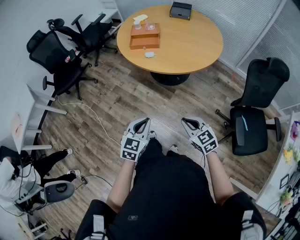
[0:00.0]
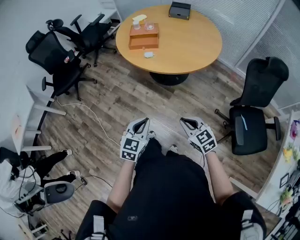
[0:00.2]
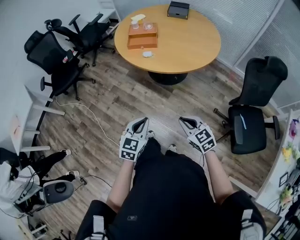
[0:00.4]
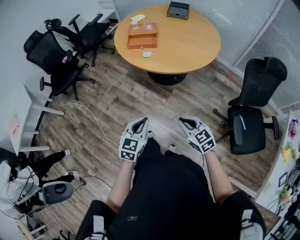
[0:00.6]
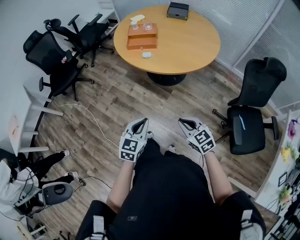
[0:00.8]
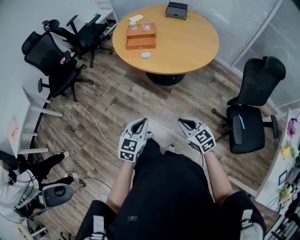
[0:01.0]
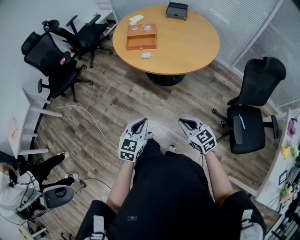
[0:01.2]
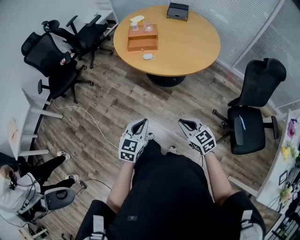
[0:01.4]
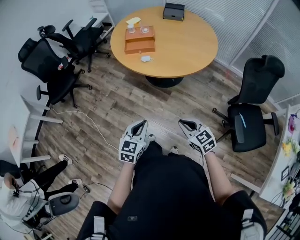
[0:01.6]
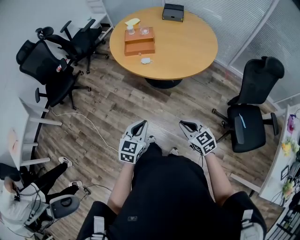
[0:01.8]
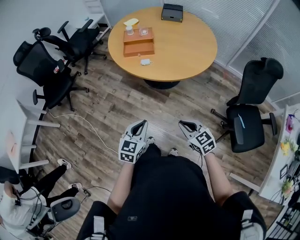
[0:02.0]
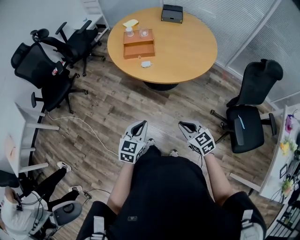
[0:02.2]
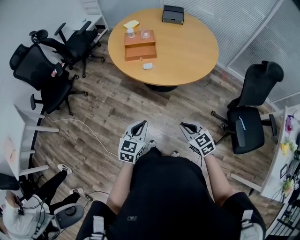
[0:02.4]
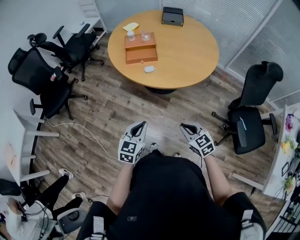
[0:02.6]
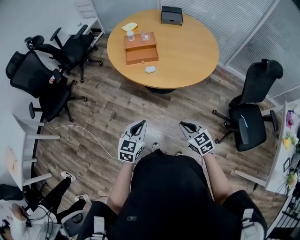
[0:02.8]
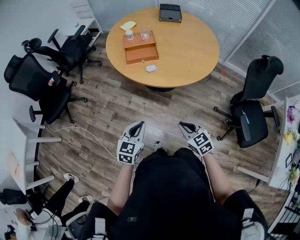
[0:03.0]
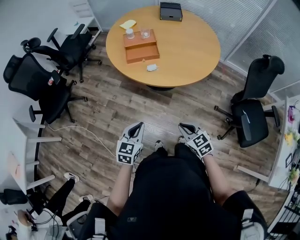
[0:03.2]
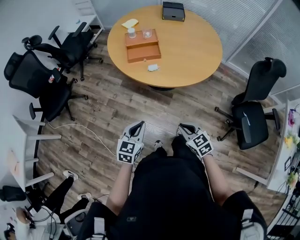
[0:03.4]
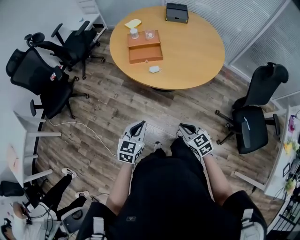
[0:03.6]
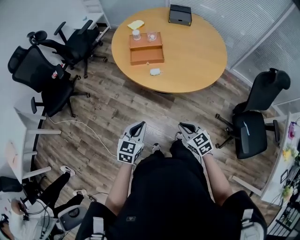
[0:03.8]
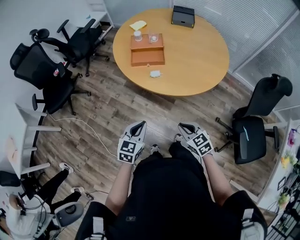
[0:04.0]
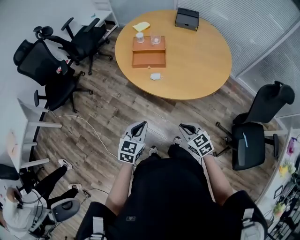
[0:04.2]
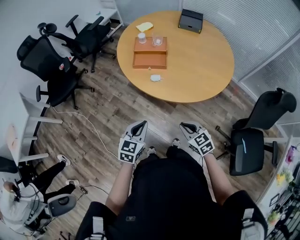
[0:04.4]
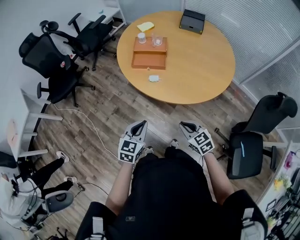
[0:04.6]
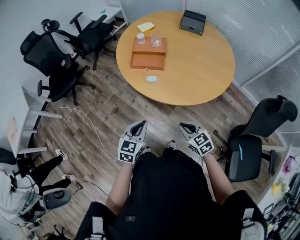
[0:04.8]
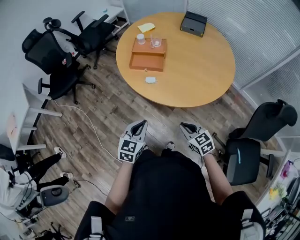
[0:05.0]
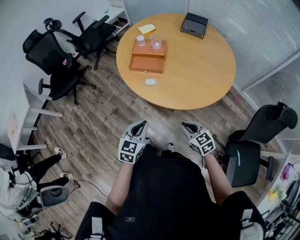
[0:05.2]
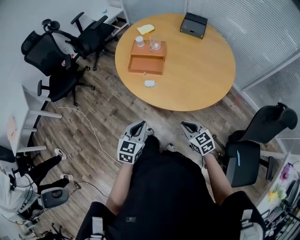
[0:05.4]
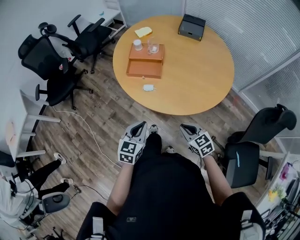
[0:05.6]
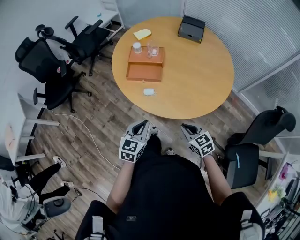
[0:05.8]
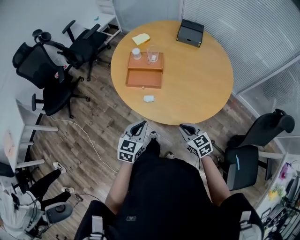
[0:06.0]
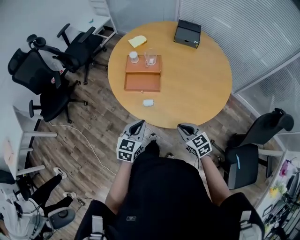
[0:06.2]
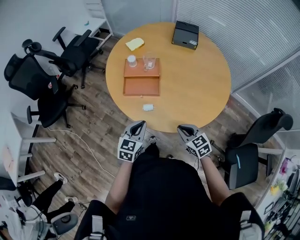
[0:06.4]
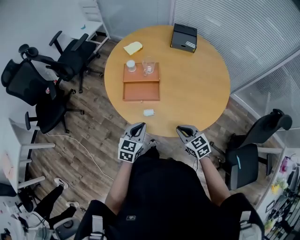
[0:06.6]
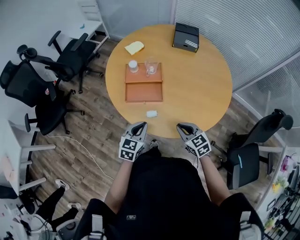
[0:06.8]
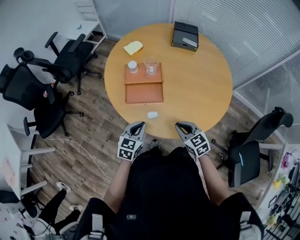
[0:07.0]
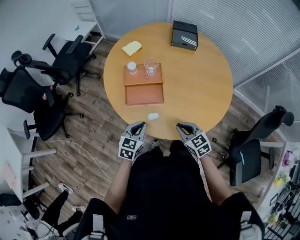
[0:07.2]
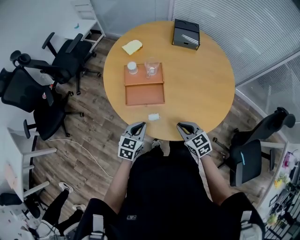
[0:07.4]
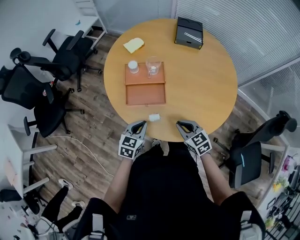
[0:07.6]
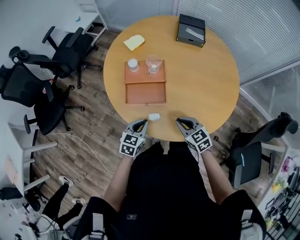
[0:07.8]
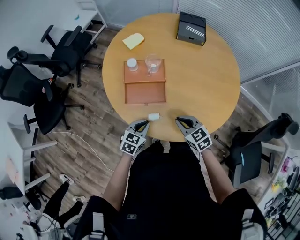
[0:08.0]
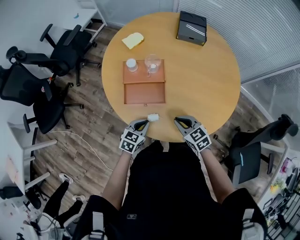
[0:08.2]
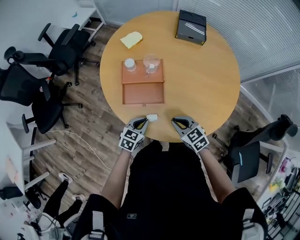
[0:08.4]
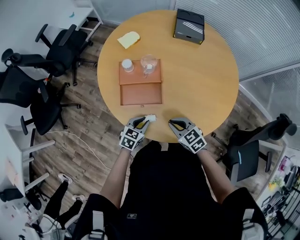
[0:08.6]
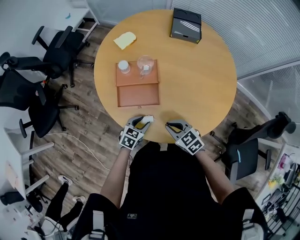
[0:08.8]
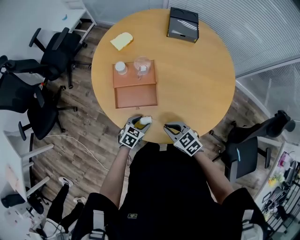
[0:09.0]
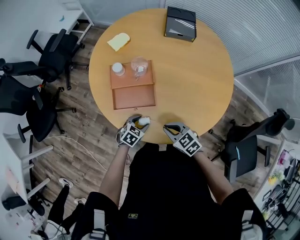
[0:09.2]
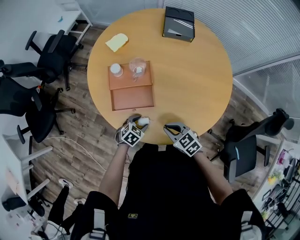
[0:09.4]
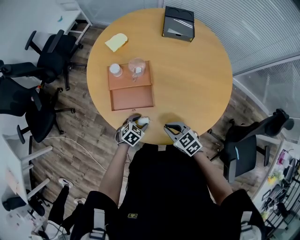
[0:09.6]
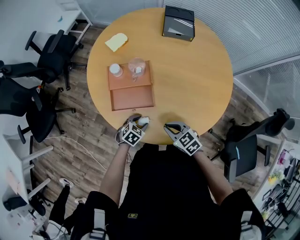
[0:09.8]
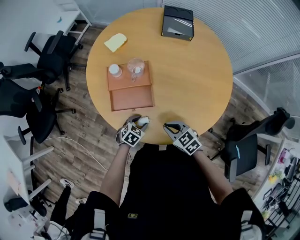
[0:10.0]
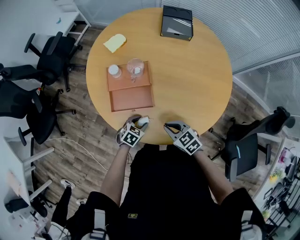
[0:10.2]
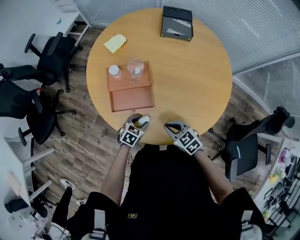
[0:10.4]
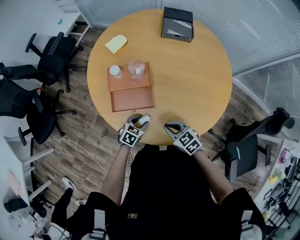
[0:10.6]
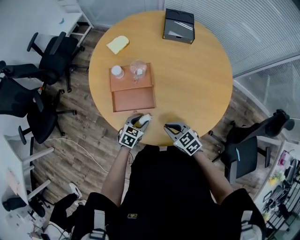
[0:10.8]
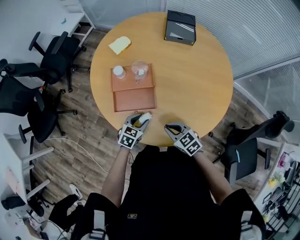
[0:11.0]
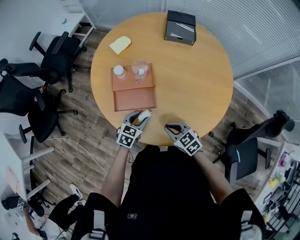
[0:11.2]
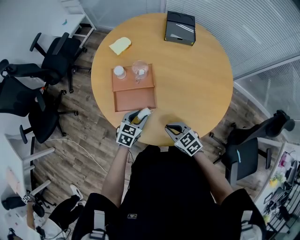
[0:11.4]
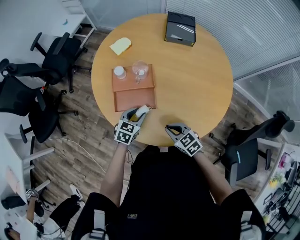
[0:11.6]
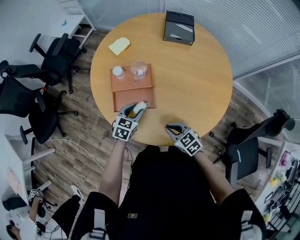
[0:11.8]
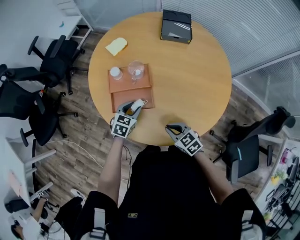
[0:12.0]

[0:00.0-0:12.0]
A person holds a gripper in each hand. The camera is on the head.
0:00.0 to 0:01.6: The left gripper moves about 5 cm.
0:01.6 to 0:03.0: Both grippers travel together forward and to the left, about 15 cm.
0:03.0 to 0:04.4: The left gripper shifts about 10 cm to the right and forward; the right gripper is displaced forward and to the right by approximately 10 cm.
0:04.4 to 0:06.0: Both grippers move forward and to the right, approximately 15 cm.
0:06.0 to 0:07.6: The right gripper heads forward, covering some 15 cm, while the left gripper shifts approximately 15 cm forward and downward.
0:07.6 to 0:09.0: The left gripper shifts some 10 cm downward, changes its angle by approximately 20 degrees, and opens up.
0:09.0 to 0:10.4: There are only small adjustments of the grippers.
0:10.4 to 0:12.0: The left gripper is displaced forward and upward by approximately 10 cm.

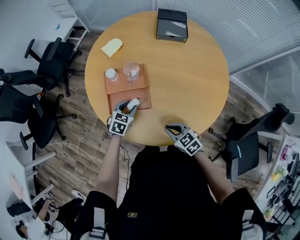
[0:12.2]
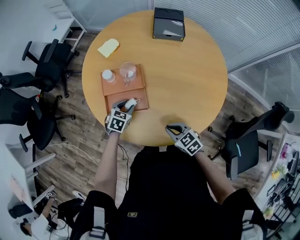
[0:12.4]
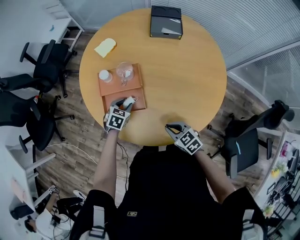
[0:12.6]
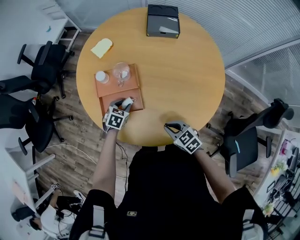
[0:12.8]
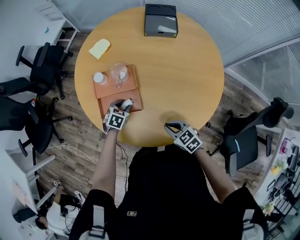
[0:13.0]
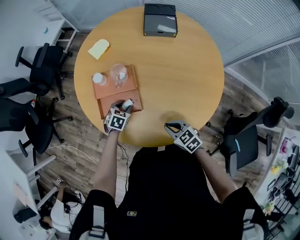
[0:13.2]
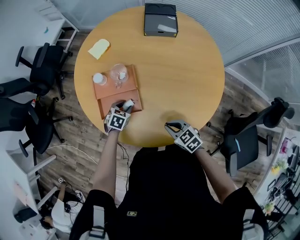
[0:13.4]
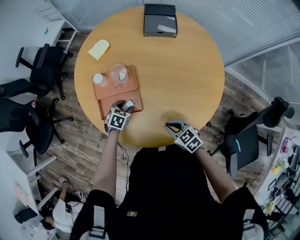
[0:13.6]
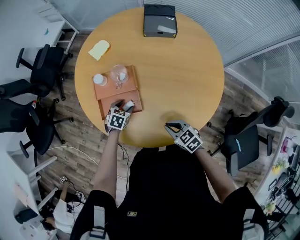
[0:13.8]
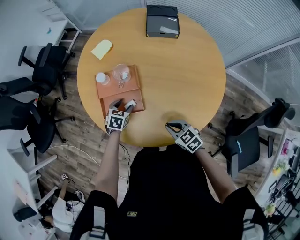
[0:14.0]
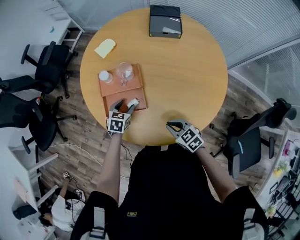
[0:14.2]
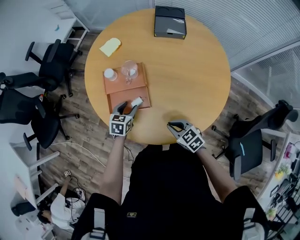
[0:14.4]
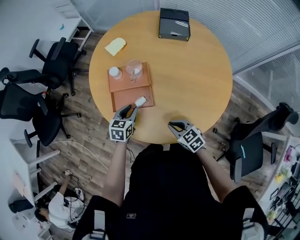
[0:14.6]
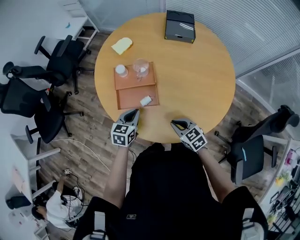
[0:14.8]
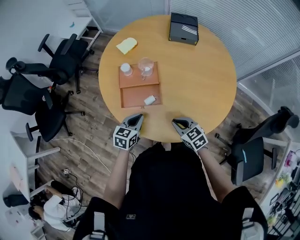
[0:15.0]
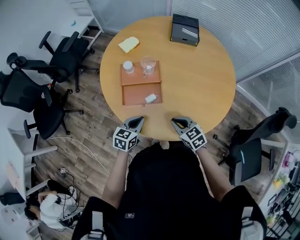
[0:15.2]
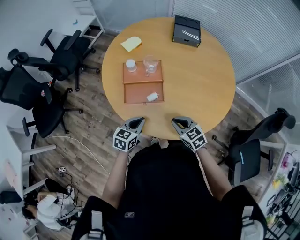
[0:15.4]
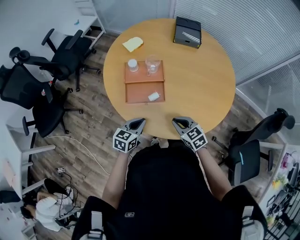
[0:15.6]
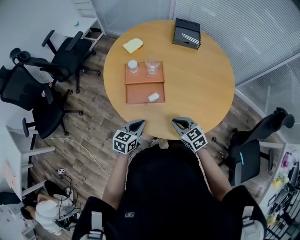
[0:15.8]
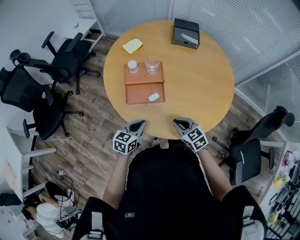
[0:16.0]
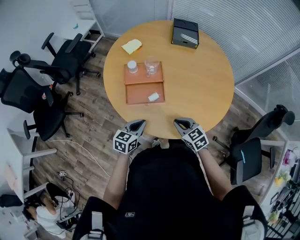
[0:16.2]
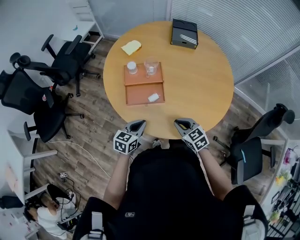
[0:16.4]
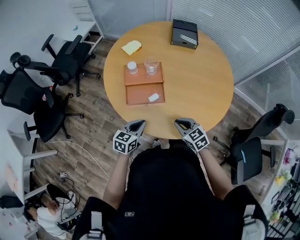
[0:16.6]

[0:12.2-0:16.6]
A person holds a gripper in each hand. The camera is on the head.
0:12.2 to 0:13.6: The left gripper shifts roughly 5 cm downward.
0:13.6 to 0:15.2: The right gripper heads to the left, covering approximately 5 cm. The left gripper moves backward, upward and to the left, some 15 cm, turns by some 30 degrees, and closes.
0:15.2 to 0:16.6: The grippers move only a little.

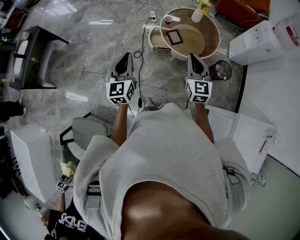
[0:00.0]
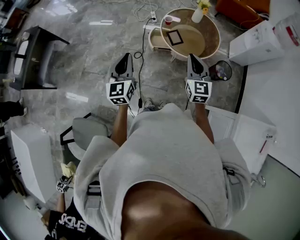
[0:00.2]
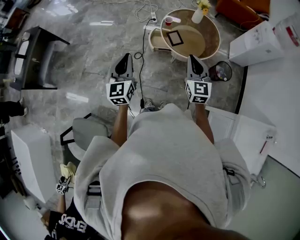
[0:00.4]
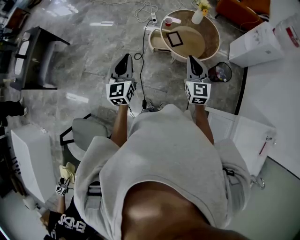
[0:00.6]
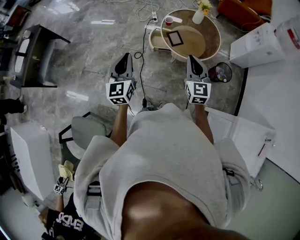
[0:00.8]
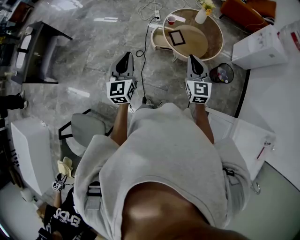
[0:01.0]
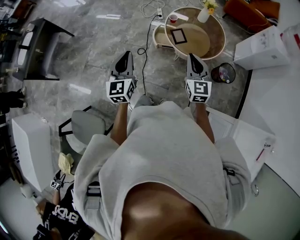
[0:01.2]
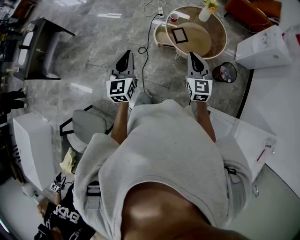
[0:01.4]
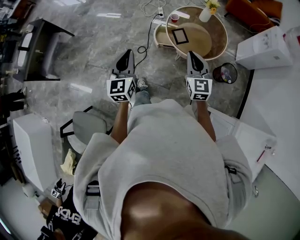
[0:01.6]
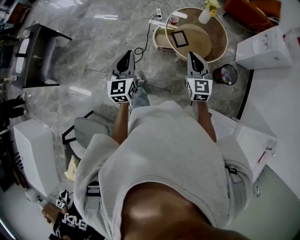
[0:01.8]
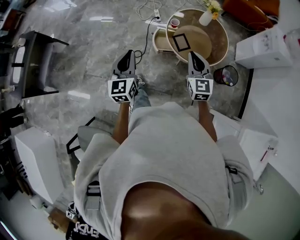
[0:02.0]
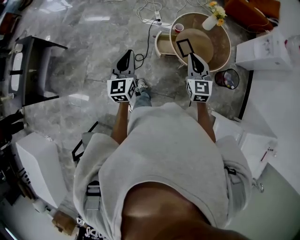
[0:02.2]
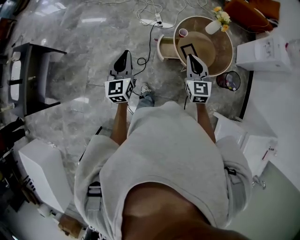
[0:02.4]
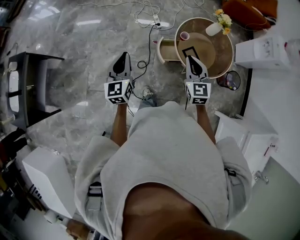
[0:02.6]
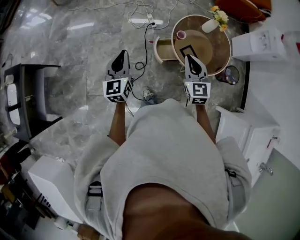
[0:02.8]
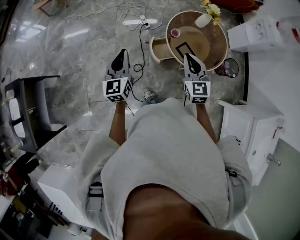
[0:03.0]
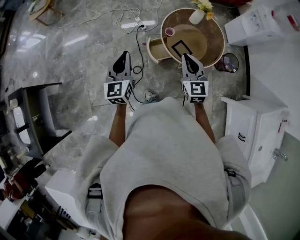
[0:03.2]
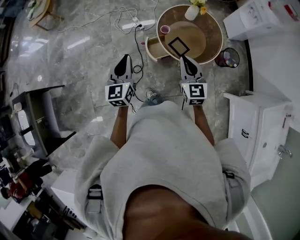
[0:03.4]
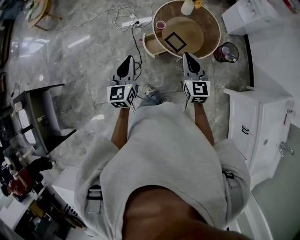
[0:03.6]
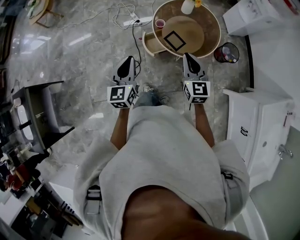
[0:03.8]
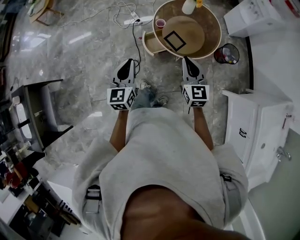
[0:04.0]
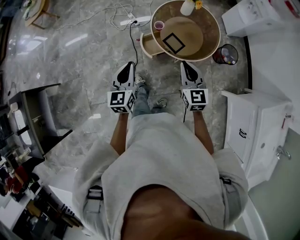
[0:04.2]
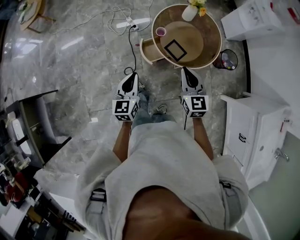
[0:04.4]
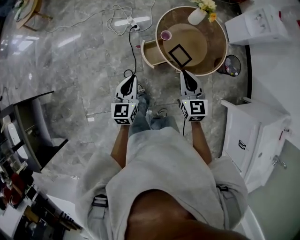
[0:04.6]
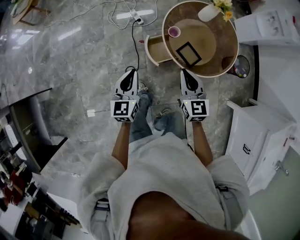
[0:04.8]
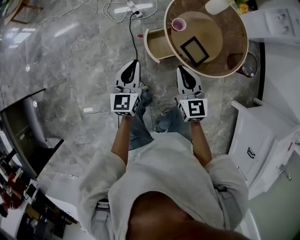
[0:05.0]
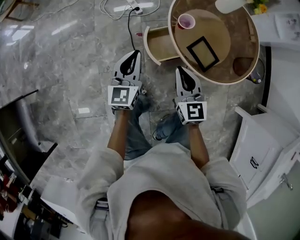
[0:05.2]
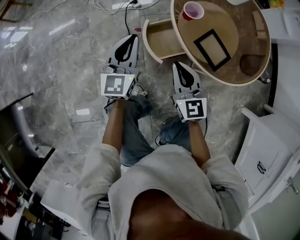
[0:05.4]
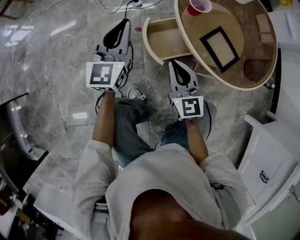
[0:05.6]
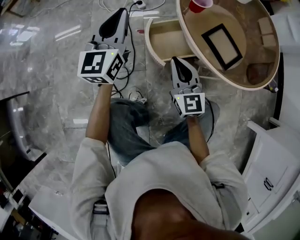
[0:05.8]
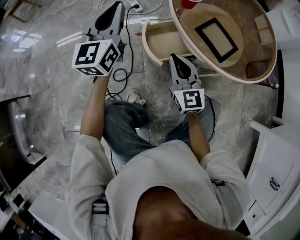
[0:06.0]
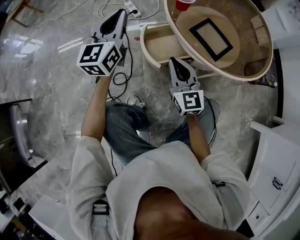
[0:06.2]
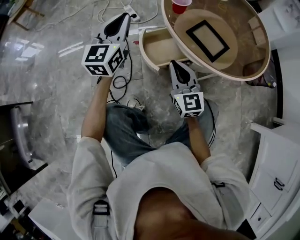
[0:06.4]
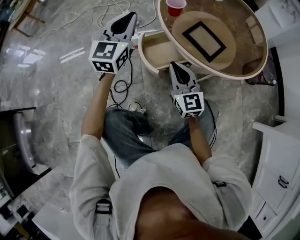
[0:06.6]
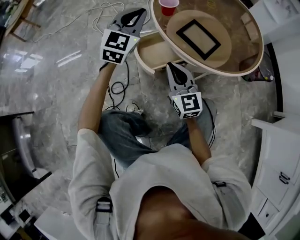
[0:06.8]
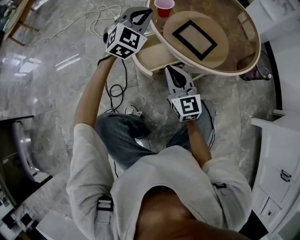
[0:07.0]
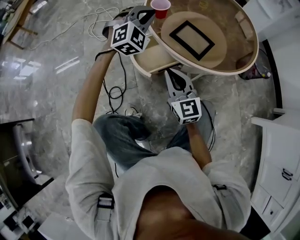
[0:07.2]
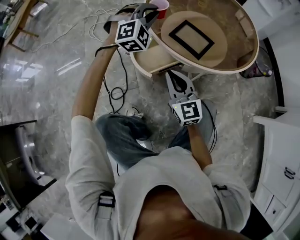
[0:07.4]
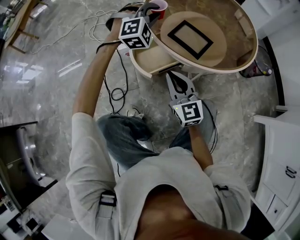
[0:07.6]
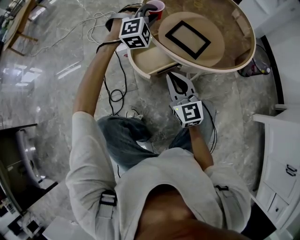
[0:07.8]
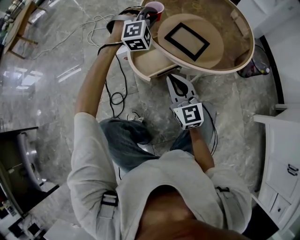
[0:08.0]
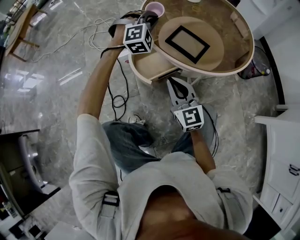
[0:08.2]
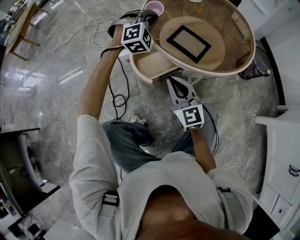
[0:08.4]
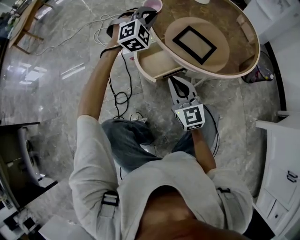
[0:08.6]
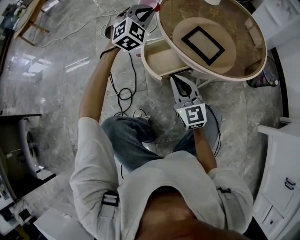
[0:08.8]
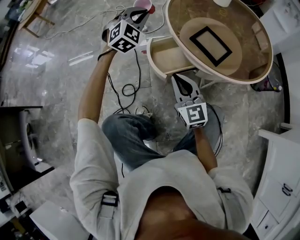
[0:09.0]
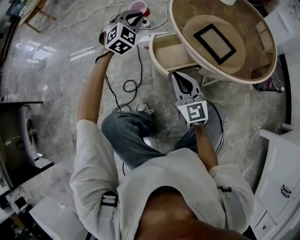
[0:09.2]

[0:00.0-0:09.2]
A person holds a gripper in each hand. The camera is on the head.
0:00.0 to 0:01.6: The grippers stay close to where they were, moving slightly.
0:01.6 to 0:03.0: Both grippers travel together forward and to the left, some 35 cm.
0:03.0 to 0:04.6: Both grippers move downward and to the right, roughly 15 cm.
0:04.6 to 0:06.2: The right gripper is displaced downward by about 50 cm. Meanwhile the left gripper travels downward and forward by approximately 35 cm, and changes its angle by roughly 20 degrees.
0:06.2 to 0:07.6: The right gripper ends up about 5 cm from where it was. Meanwhile the left gripper is displaced to the right and forward by about 20 cm, and rotates around the line of its fingers by roughly 70 degrees, clockwise from behind.
0:07.6 to 0:09.2: The right gripper is displaced to the left by about 5 cm; the left gripper is displaced to the left by roughly 15 cm, and rotates some 30 degrees.
